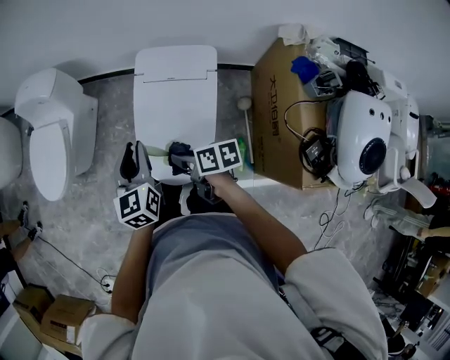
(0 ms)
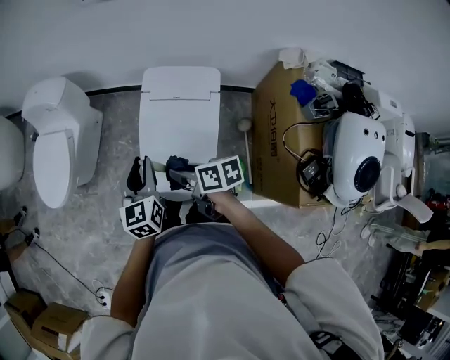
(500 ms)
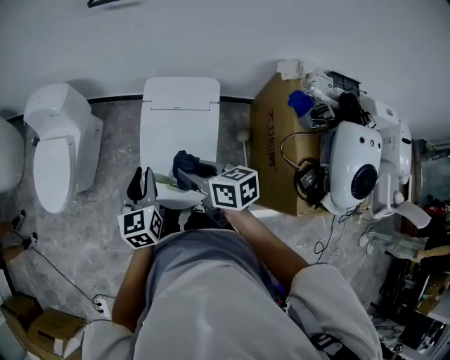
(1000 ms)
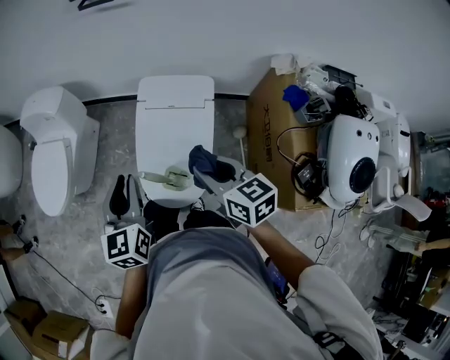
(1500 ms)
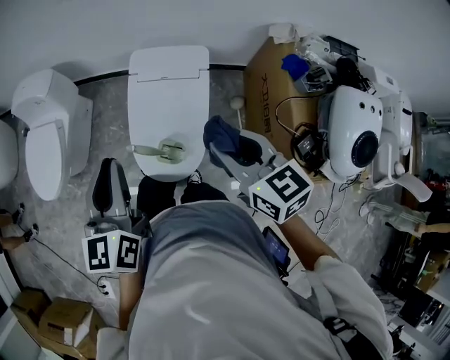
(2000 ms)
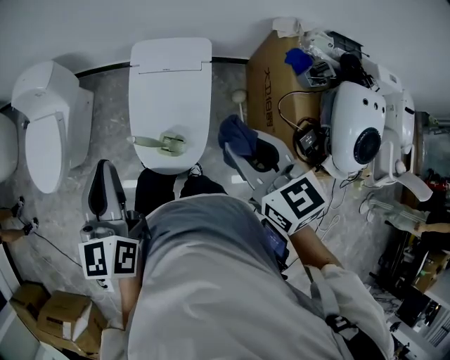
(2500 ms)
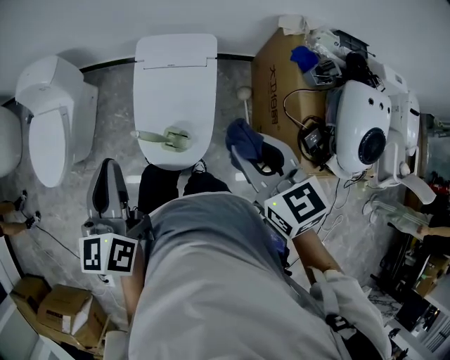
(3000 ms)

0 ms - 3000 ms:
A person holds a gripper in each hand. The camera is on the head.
0 ms - 1500 ms: The left gripper goes roughly 10 cm upward.
1500 ms - 3000 ms: The left gripper heads upward, covering roughly 5 cm.

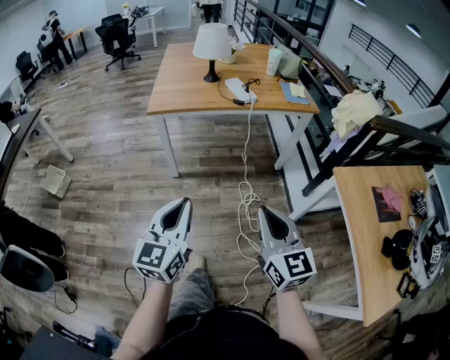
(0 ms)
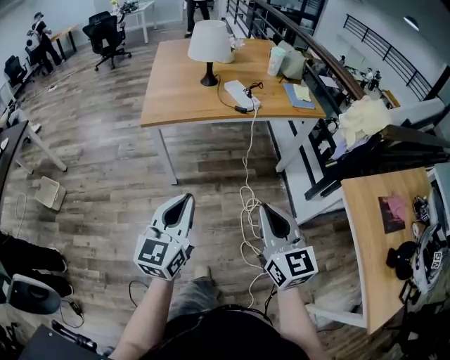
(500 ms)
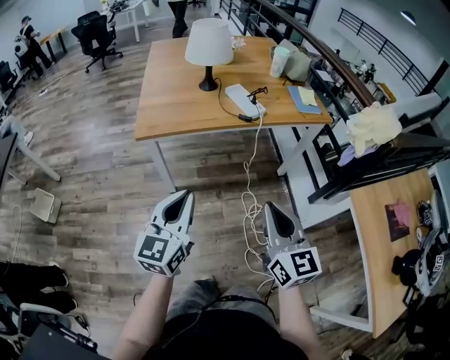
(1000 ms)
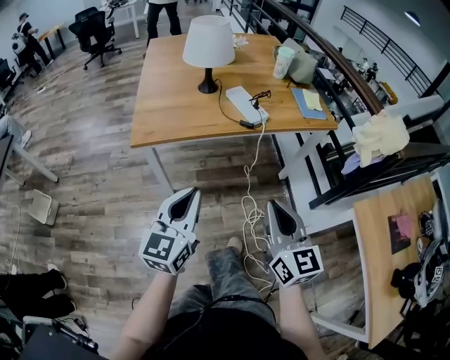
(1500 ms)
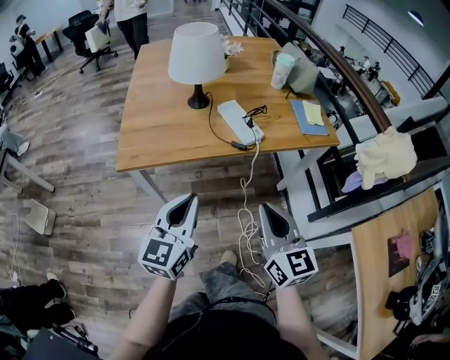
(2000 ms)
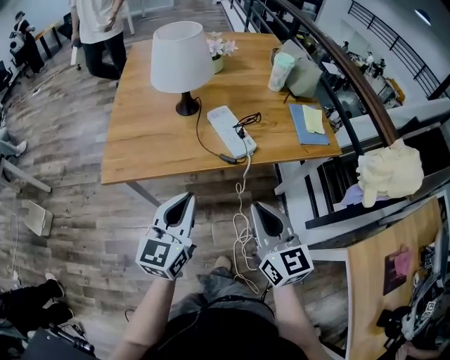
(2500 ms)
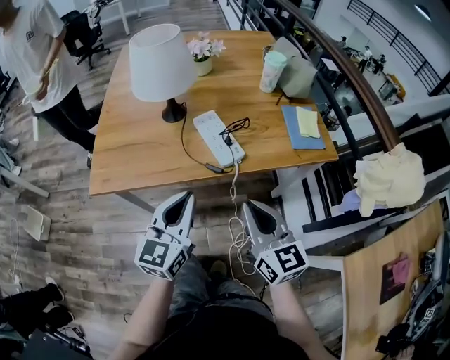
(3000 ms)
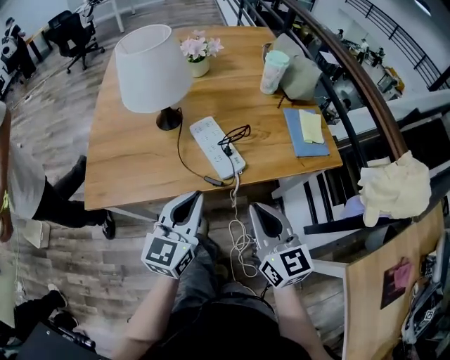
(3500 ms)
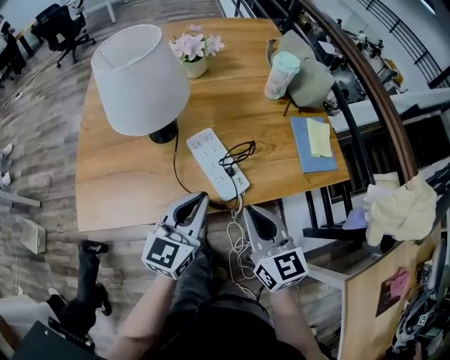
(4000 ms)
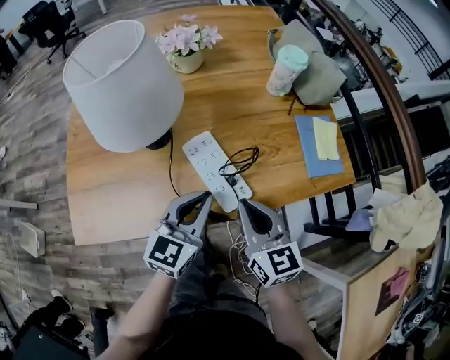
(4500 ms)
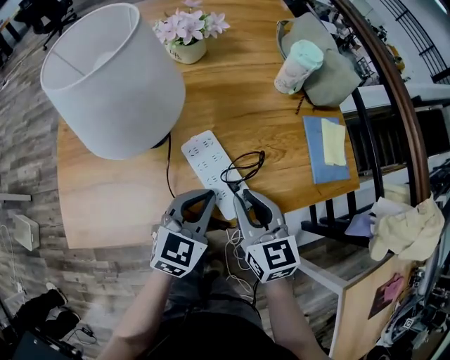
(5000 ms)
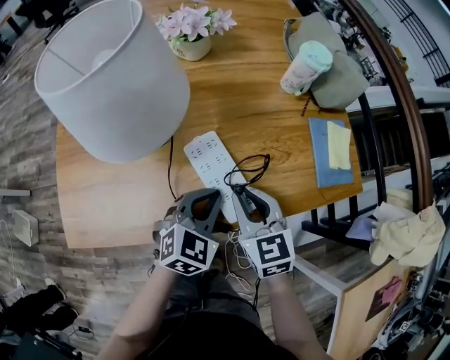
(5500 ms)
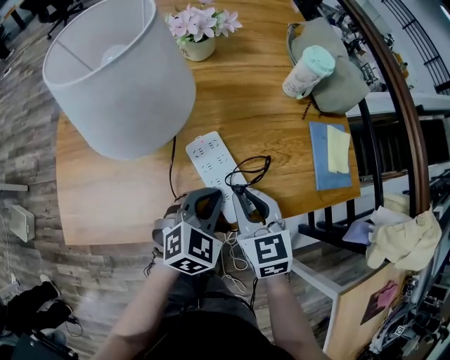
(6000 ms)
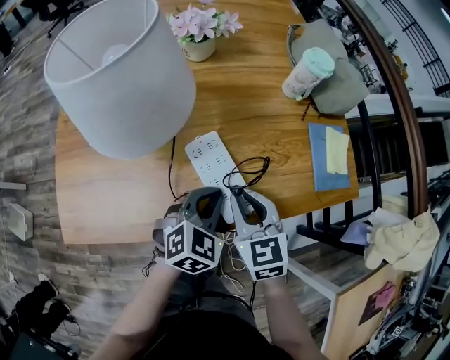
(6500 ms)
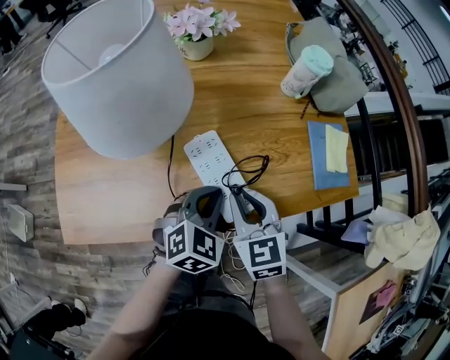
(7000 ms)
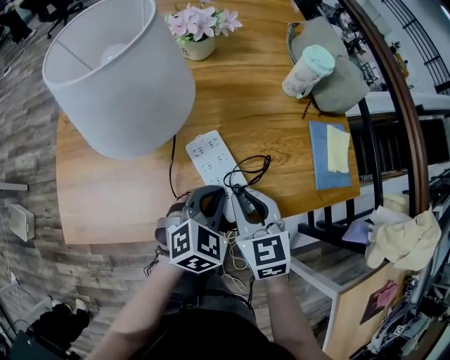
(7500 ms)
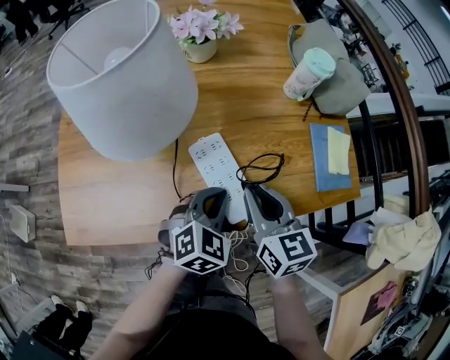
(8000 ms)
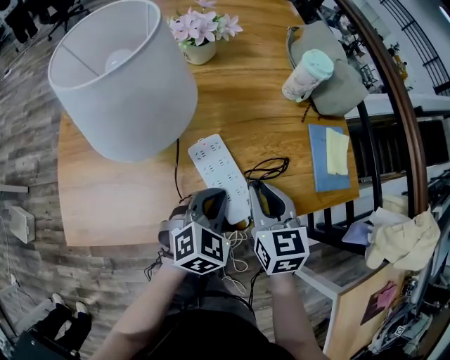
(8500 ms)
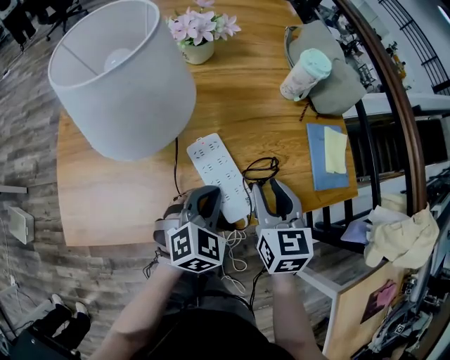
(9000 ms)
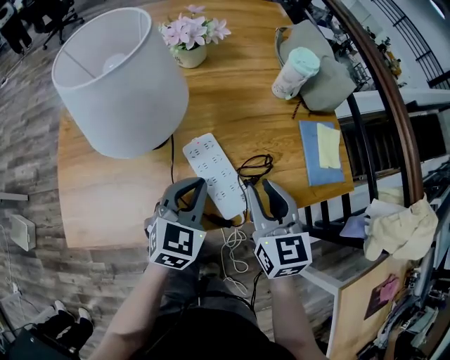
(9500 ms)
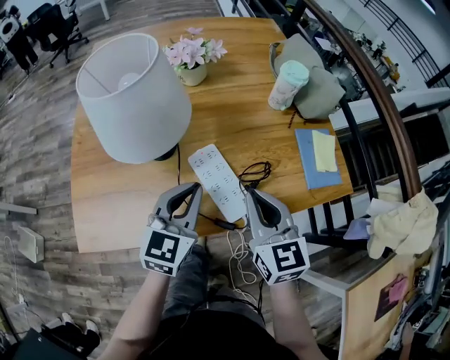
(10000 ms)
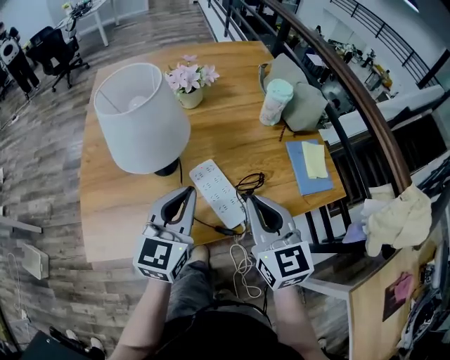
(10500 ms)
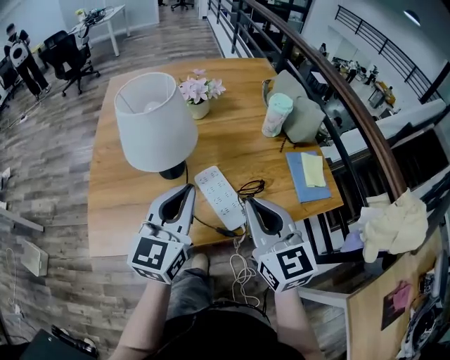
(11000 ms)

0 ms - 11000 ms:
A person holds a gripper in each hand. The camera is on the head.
0 ms - 2000 ms: The two grippers go some 40 cm forward.
2000 ms - 3500 ms: Both grippers travel together forward and to the right, some 20 cm.
3500 ms - 5500 ms: The two grippers go approximately 20 cm forward and downward. The left gripper rotates about 40 degrees. Meanwhile the right gripper swivels about 20 degrees.
5500 ms - 7500 ms: There are only small adjustments of the grippers.
7500 ms - 9000 ms: The right gripper shifts some 5 cm to the right.
9000 ms - 11000 ms: The right gripper travels upward and backward by roughly 15 cm, rotates some 20 degrees, and closes its fingers, while the left gripper is displaced upward by some 20 cm, and points its fingers approximately 40 degrees further upward.

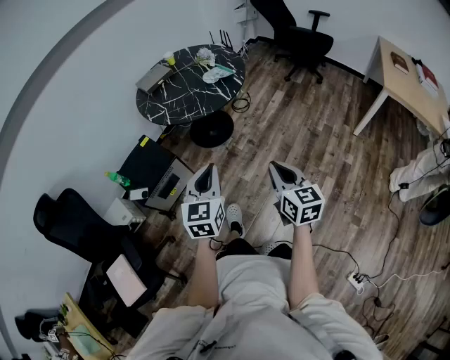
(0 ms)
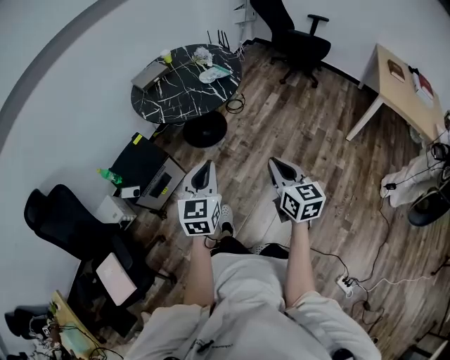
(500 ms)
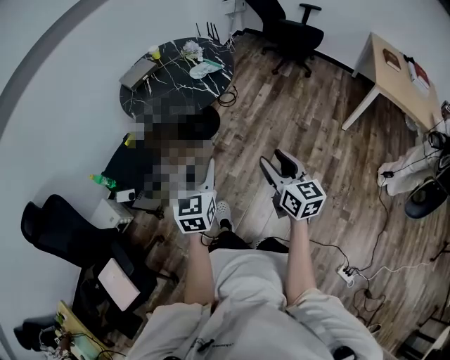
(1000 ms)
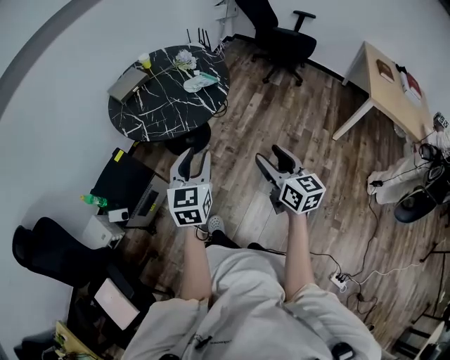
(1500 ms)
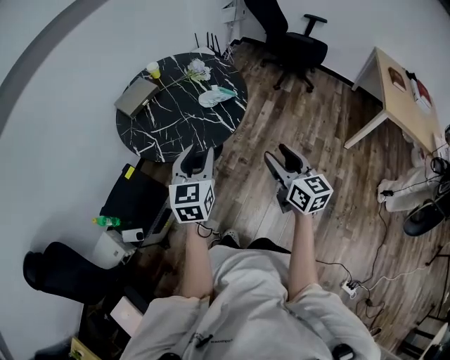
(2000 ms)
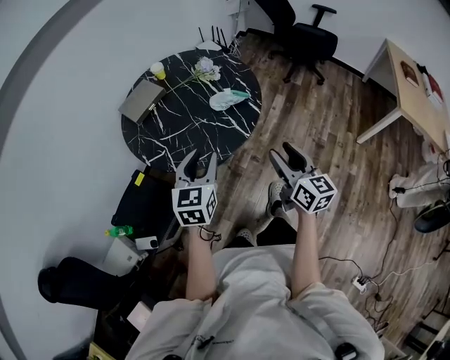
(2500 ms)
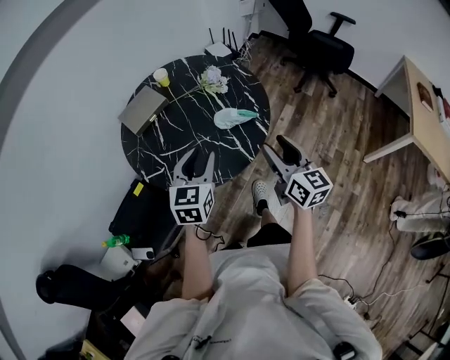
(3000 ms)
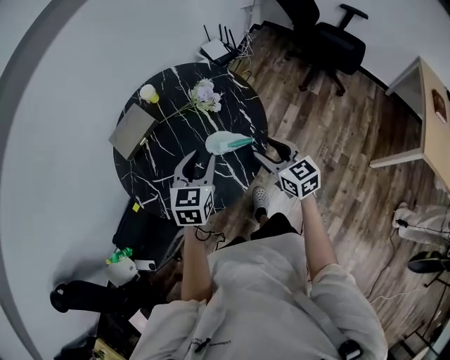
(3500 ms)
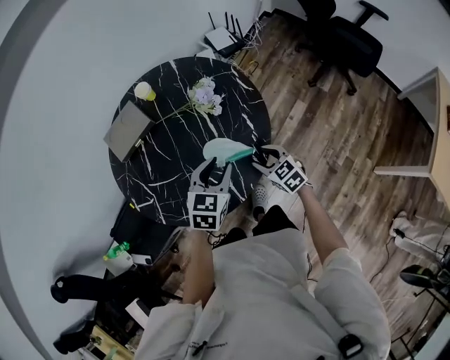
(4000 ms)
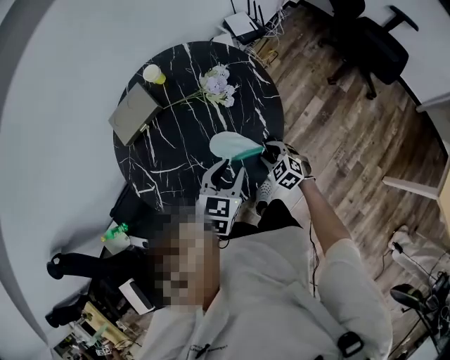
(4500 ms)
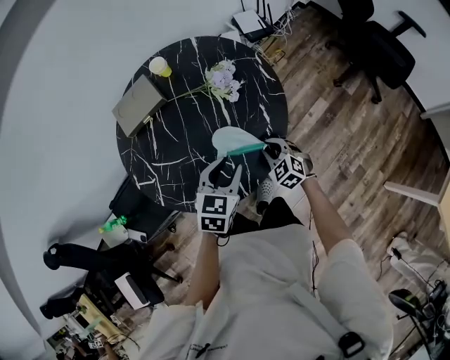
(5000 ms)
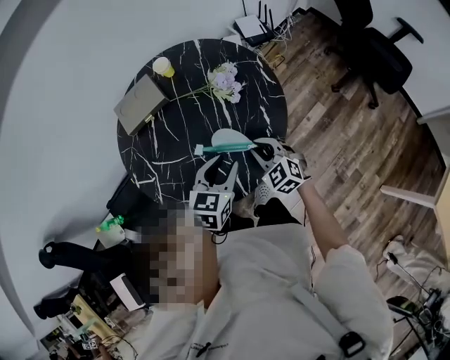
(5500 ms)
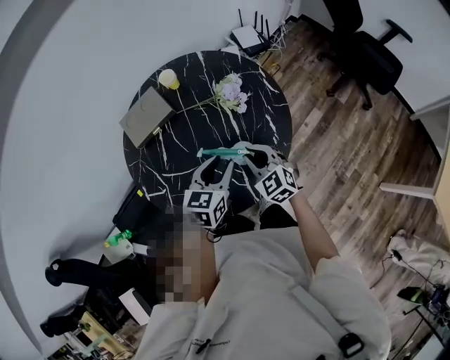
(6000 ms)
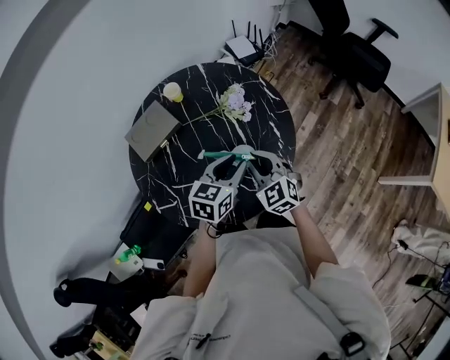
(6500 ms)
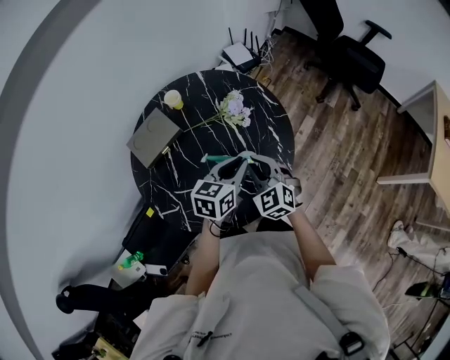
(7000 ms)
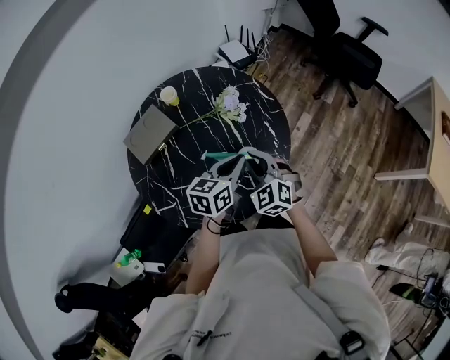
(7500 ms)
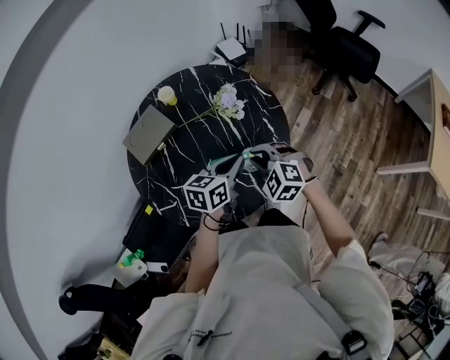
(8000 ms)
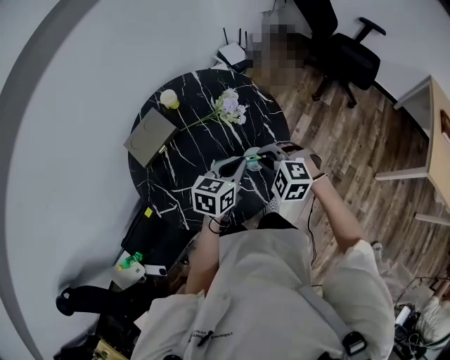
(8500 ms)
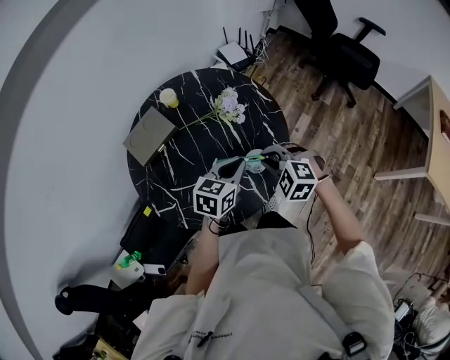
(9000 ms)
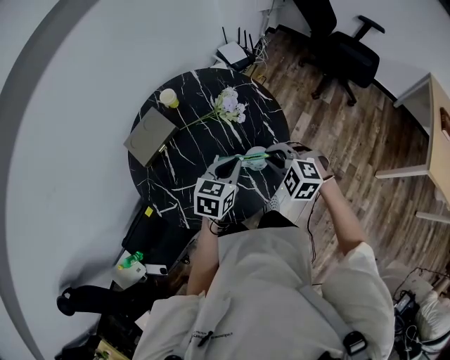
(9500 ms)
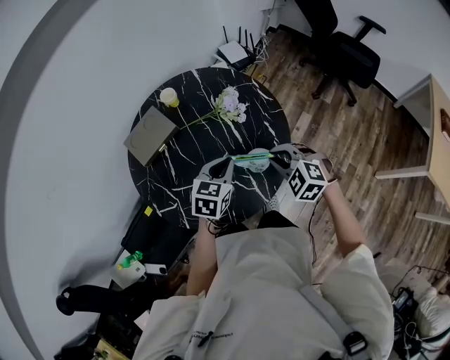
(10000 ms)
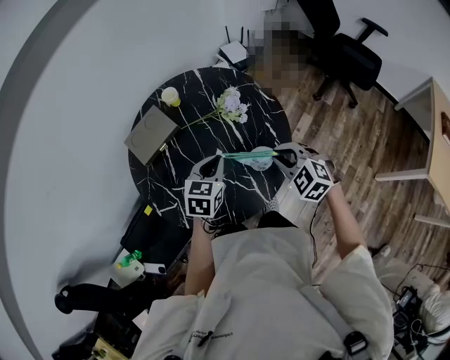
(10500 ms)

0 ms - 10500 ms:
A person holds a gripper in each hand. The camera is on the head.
0 ms - 2000 ms: Both grippers travel together forward, about 30 cm. The right gripper opens its fingers, while the left gripper opens its fingers.
2000 ms - 4000 ms: Both grippers are carried forward, roughly 40 cm. The right gripper travels downward by approximately 25 cm, and points its fingers roughly 30 degrees further downward. Meanwhile the left gripper changes its angle by approximately 20 degrees.
4000 ms - 6500 ms: The left gripper is displaced to the left by approximately 5 cm, while the right gripper travels to the left and upward by roughly 20 cm, swivels about 30 degrees, and closes.
6500 ms - 8500 ms: The right gripper changes its angle by about 40 degrees. Meanwhile the left gripper closes.
8500 ms - 10500 ms: The left gripper travels to the left by approximately 5 cm.

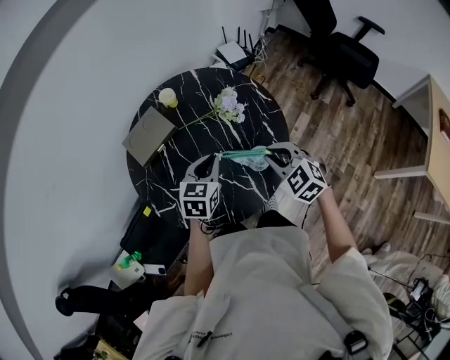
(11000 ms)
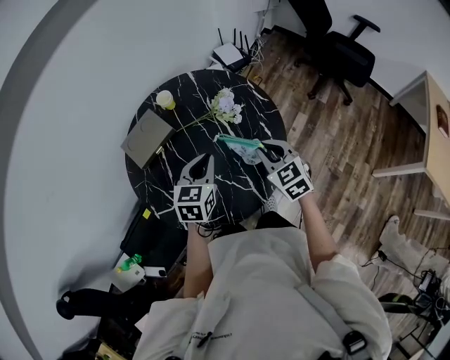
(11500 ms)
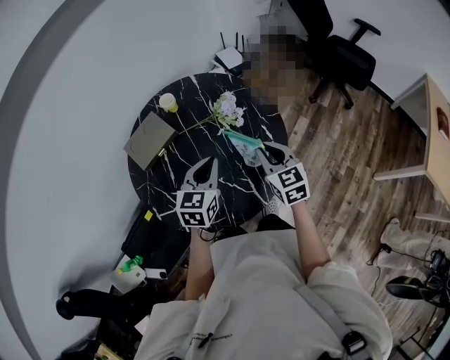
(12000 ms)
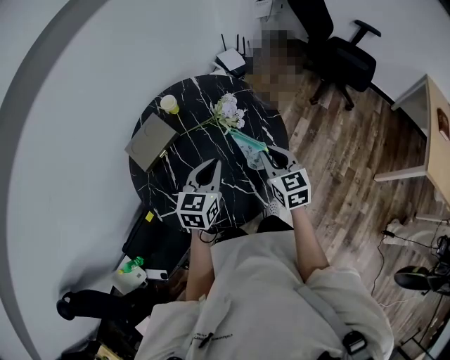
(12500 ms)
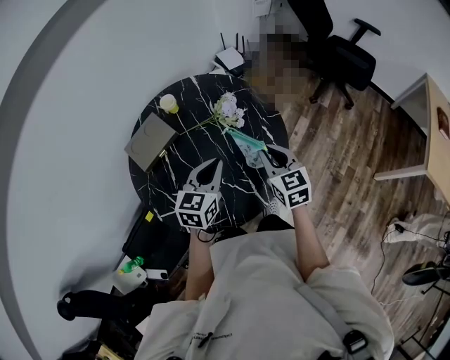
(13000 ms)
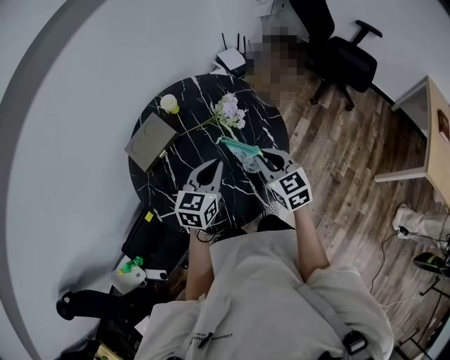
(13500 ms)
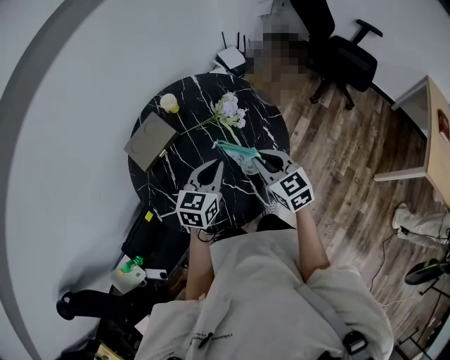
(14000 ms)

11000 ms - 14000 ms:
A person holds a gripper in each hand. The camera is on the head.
11000 ms - 12500 ms: The right gripper rotates some 40 degrees.
12500 ms - 14000 ms: The grippers stay close to where they were, moving slightly.
